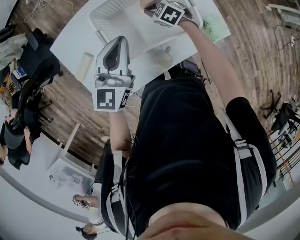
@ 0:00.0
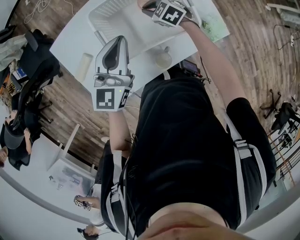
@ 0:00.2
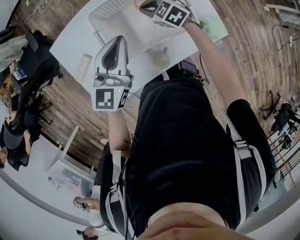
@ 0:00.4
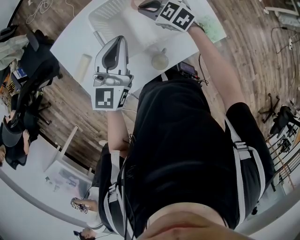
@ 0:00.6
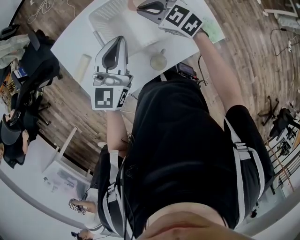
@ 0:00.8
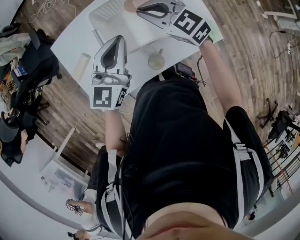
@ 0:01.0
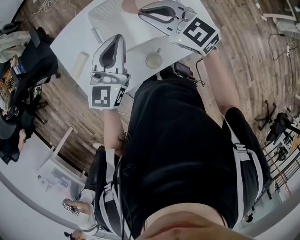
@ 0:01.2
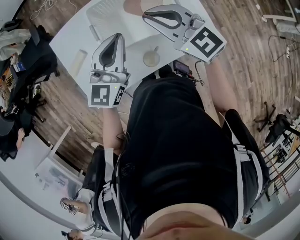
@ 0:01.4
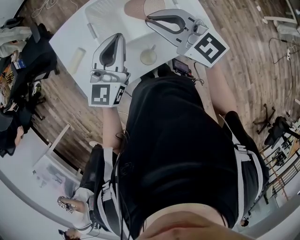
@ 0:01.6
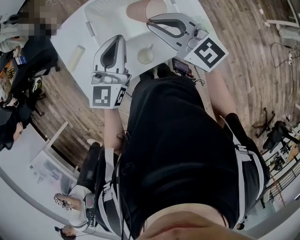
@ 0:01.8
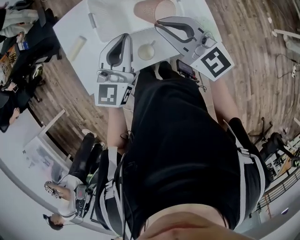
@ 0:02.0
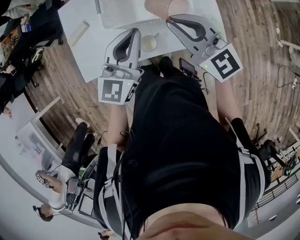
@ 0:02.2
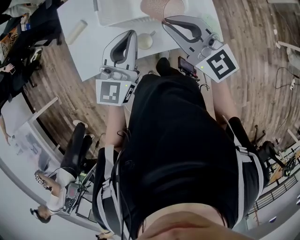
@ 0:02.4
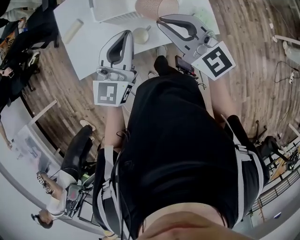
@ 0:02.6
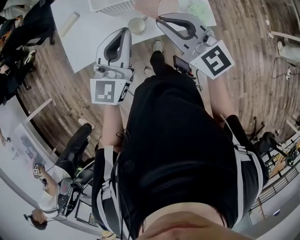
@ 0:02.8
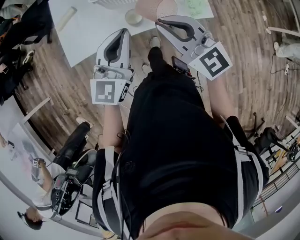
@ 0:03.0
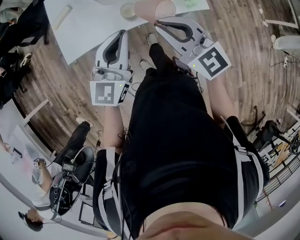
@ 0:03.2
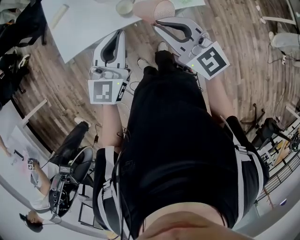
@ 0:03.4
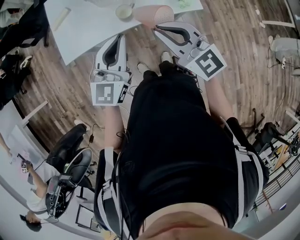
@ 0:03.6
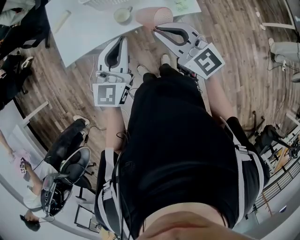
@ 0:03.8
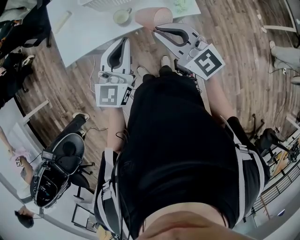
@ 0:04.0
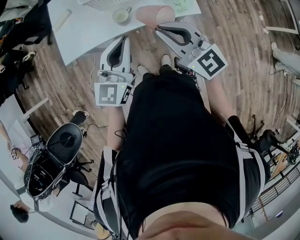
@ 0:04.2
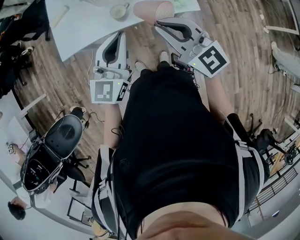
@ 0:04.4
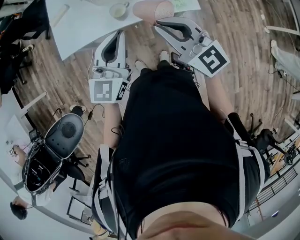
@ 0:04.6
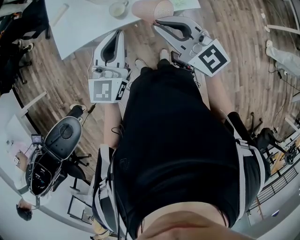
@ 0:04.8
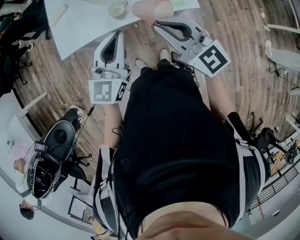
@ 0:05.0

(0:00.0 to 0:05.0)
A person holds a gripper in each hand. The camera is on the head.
0:00.0 - 0:01.6: The left gripper shifts about 10 cm backward. The right gripper travels upward and backward by approximately 35 cm, and angles its fingers upward, by approximately 50 degrees.
0:01.6 - 0:03.4: Both grippers move backward, roughly 30 cm.
0:03.4 - 0:05.0: The two grippers go approximately 5 cm to the right.

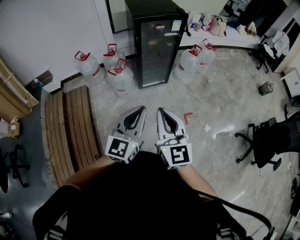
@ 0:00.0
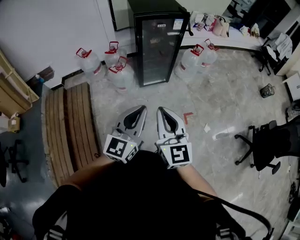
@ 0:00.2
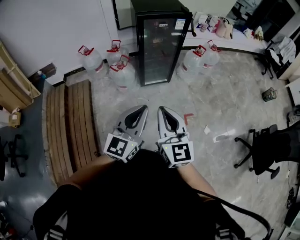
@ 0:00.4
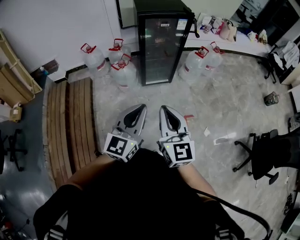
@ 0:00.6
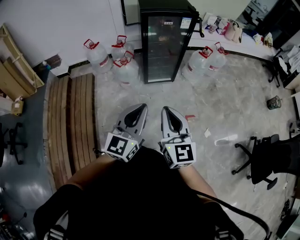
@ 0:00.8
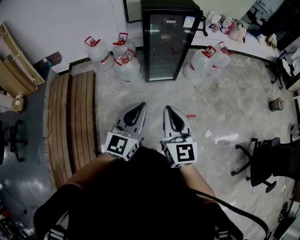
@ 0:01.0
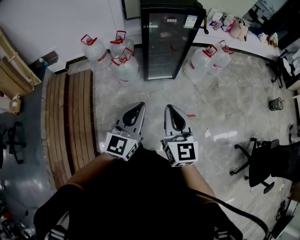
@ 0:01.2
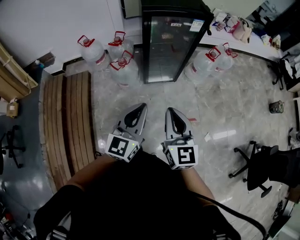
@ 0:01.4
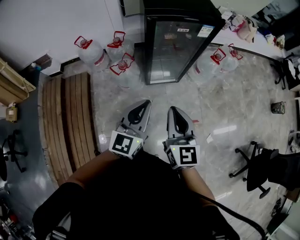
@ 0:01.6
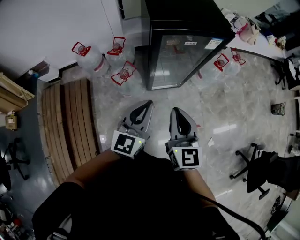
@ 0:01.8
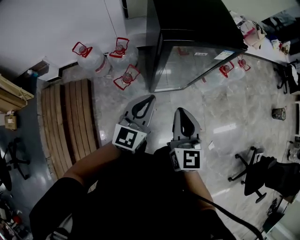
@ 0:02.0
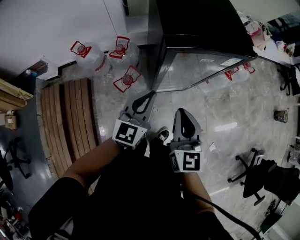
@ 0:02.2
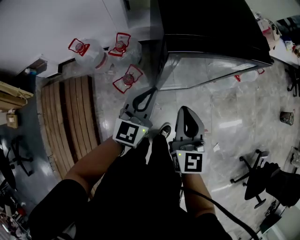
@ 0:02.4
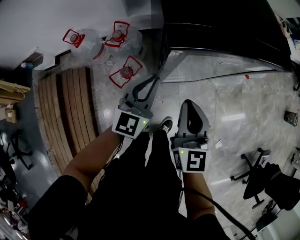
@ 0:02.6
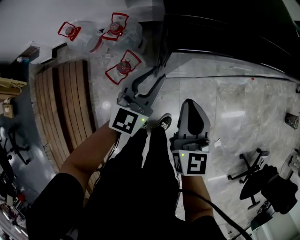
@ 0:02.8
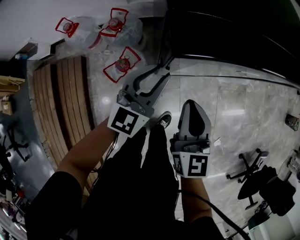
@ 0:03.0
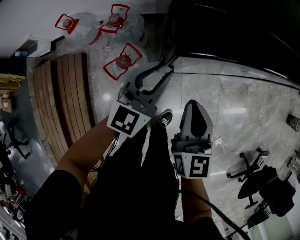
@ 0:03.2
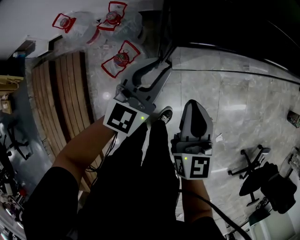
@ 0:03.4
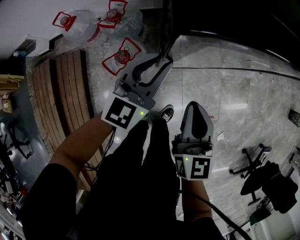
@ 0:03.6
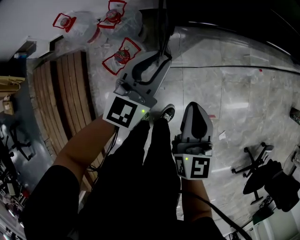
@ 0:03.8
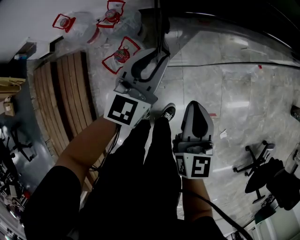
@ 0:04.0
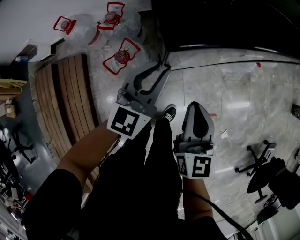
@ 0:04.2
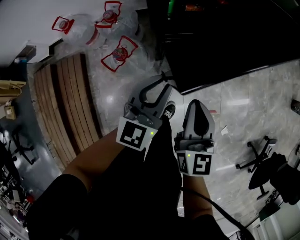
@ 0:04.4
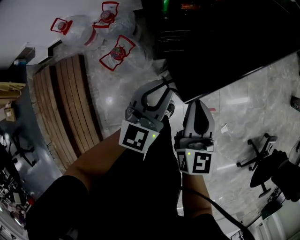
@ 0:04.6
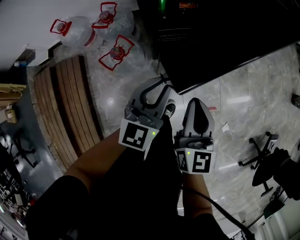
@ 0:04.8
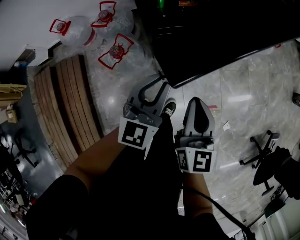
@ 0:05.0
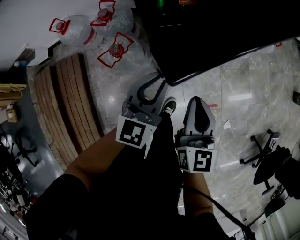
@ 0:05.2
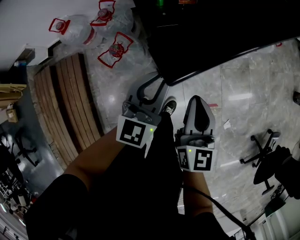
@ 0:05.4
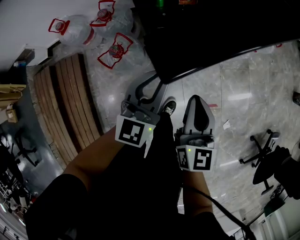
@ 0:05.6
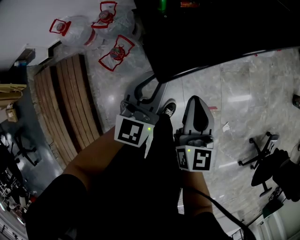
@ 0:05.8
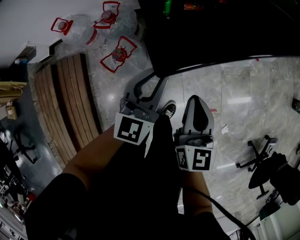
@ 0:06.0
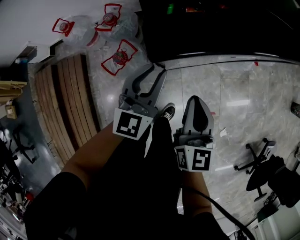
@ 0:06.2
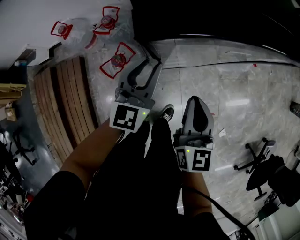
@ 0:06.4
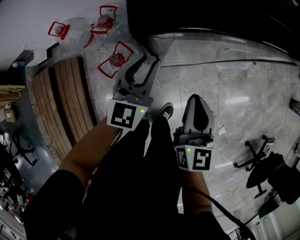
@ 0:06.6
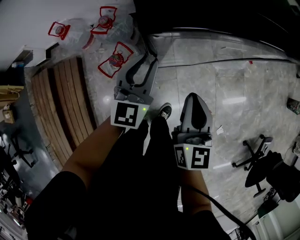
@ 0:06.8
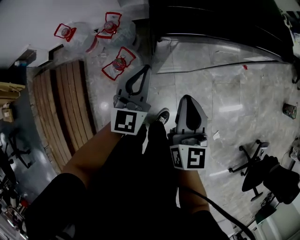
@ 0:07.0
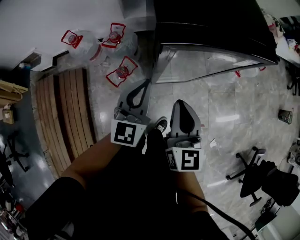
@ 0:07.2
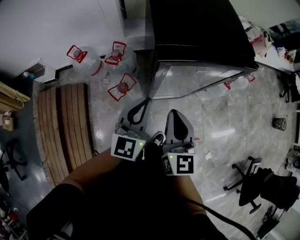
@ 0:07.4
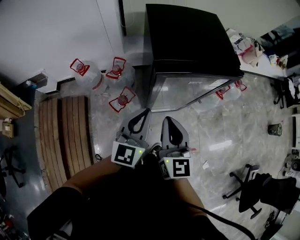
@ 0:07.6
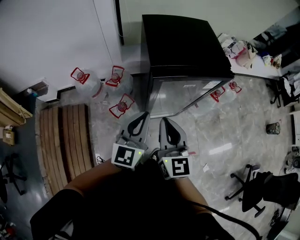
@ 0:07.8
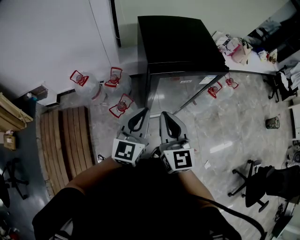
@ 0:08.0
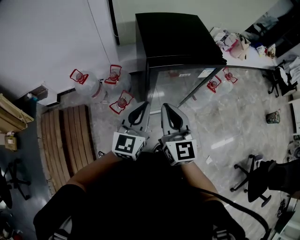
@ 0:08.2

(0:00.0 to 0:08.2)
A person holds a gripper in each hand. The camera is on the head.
0:00.0 - 0:01.6: The grippers both shift forward by about 25 cm.
0:01.6 - 0:03.2: Both grippers travel together forward and downward, some 40 cm. The left gripper opens its fingers.
0:03.2 - 0:05.0: The grippers both shift backward and to the right by some 10 cm.
0:05.0 - 0:06.6: The right gripper moves forward, roughly 10 cm; the left gripper heads forward and to the left, covering some 15 cm.
0:06.6 - 0:08.2: The right gripper moves upward, approximately 25 cm, and changes its angle by about 20 degrees. Meanwhile the left gripper shifts some 30 cm upward and backward, and closes up.

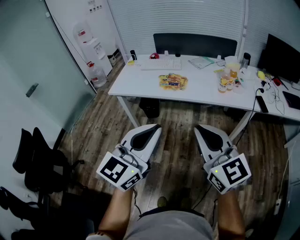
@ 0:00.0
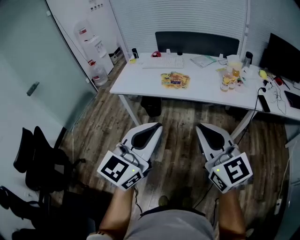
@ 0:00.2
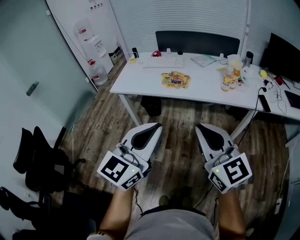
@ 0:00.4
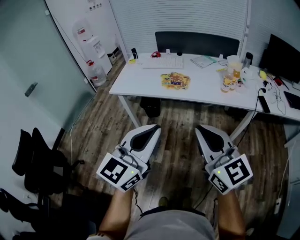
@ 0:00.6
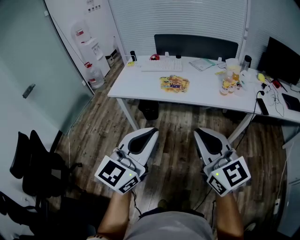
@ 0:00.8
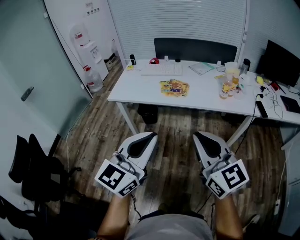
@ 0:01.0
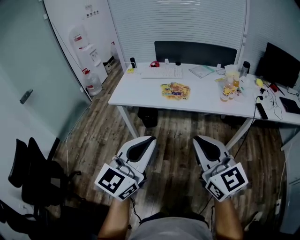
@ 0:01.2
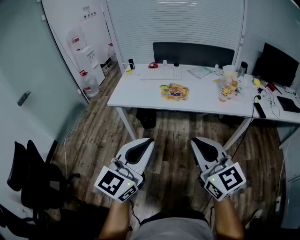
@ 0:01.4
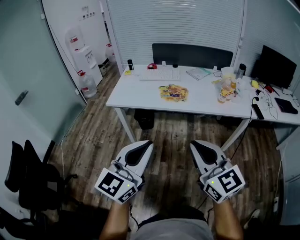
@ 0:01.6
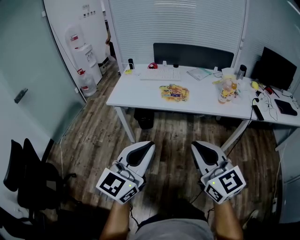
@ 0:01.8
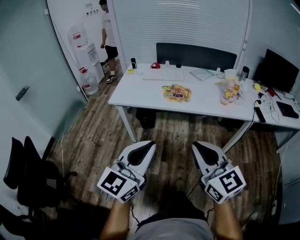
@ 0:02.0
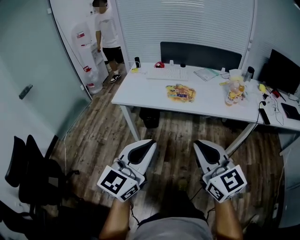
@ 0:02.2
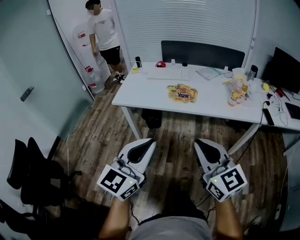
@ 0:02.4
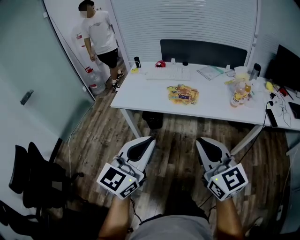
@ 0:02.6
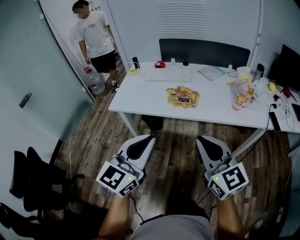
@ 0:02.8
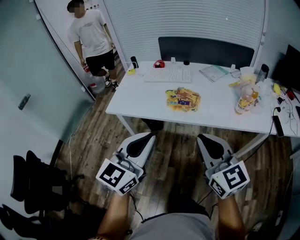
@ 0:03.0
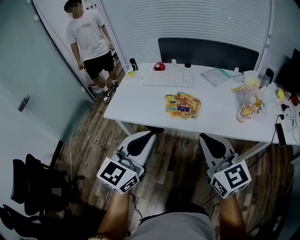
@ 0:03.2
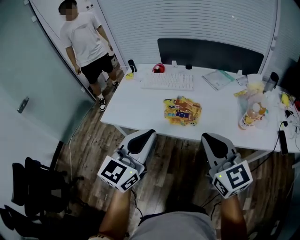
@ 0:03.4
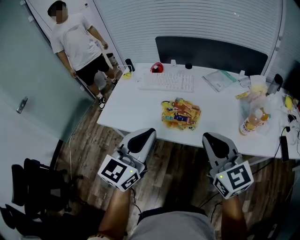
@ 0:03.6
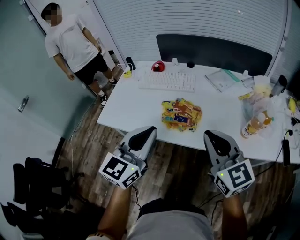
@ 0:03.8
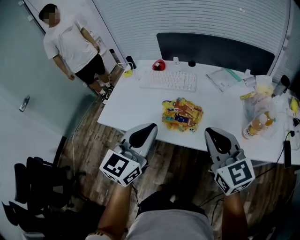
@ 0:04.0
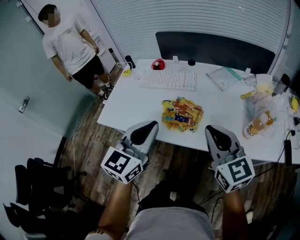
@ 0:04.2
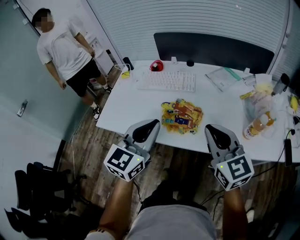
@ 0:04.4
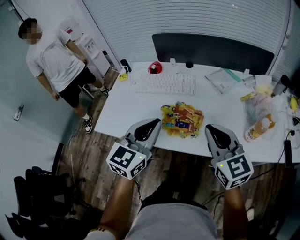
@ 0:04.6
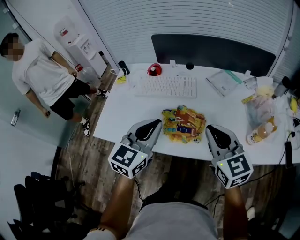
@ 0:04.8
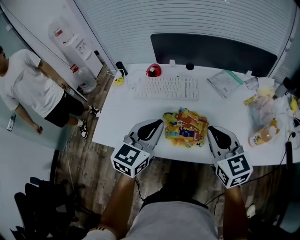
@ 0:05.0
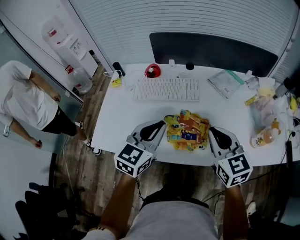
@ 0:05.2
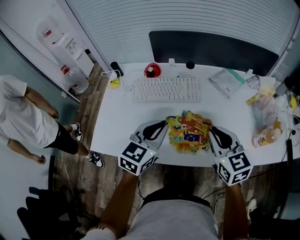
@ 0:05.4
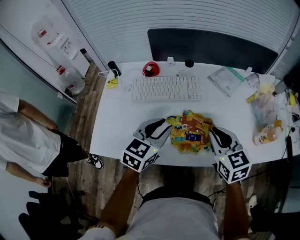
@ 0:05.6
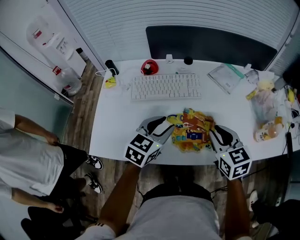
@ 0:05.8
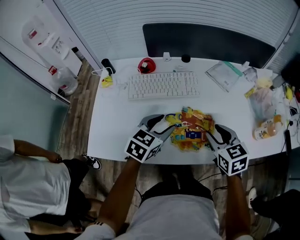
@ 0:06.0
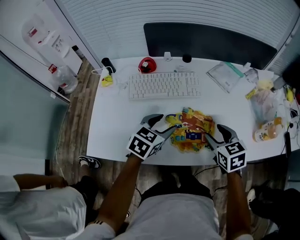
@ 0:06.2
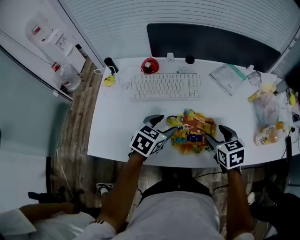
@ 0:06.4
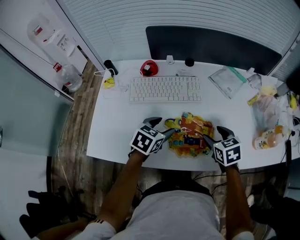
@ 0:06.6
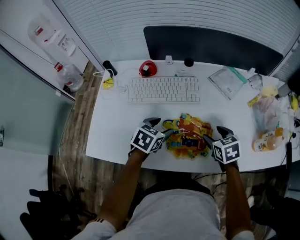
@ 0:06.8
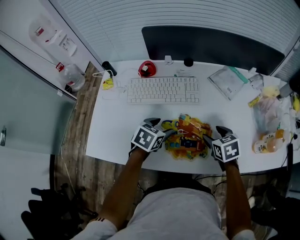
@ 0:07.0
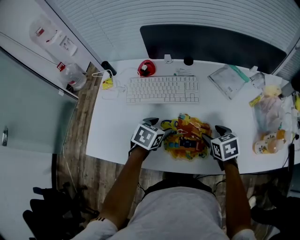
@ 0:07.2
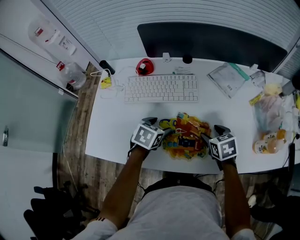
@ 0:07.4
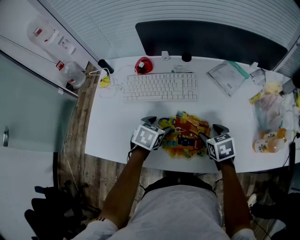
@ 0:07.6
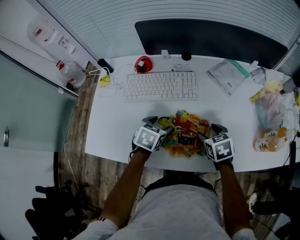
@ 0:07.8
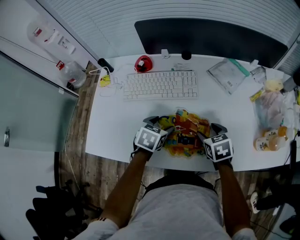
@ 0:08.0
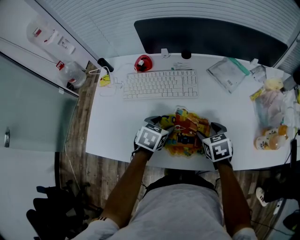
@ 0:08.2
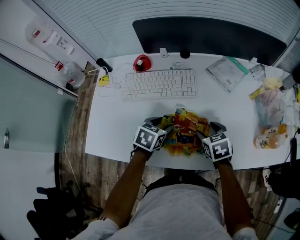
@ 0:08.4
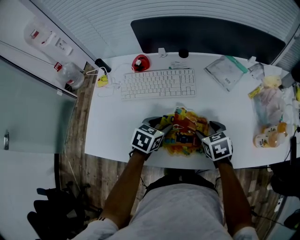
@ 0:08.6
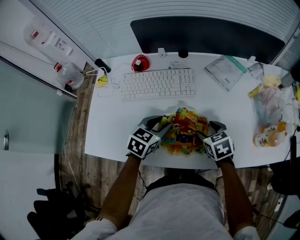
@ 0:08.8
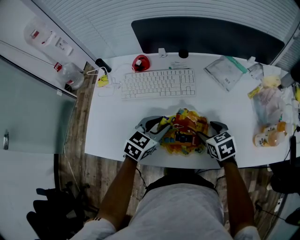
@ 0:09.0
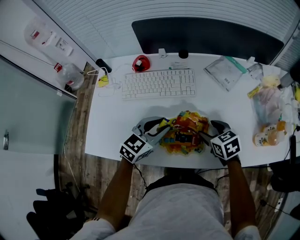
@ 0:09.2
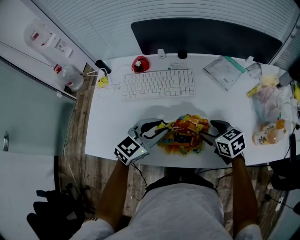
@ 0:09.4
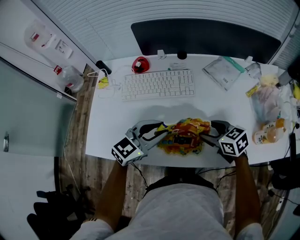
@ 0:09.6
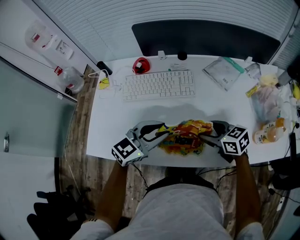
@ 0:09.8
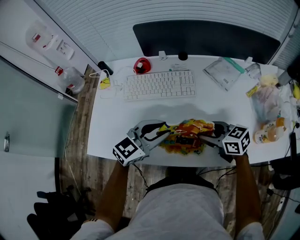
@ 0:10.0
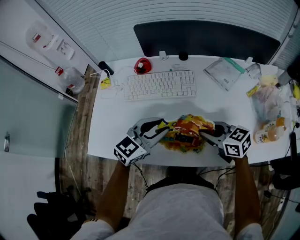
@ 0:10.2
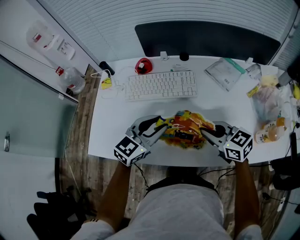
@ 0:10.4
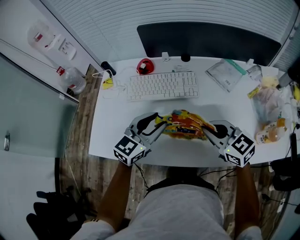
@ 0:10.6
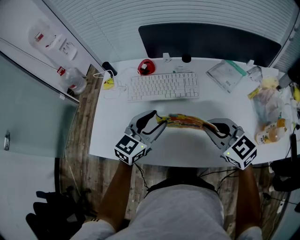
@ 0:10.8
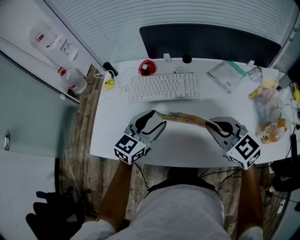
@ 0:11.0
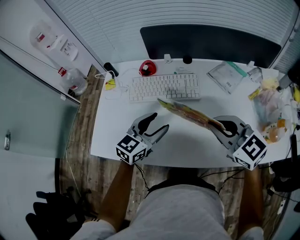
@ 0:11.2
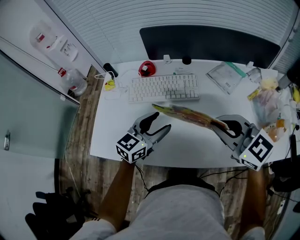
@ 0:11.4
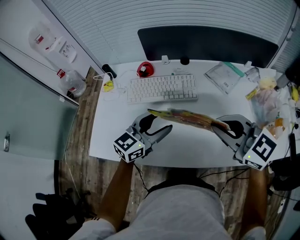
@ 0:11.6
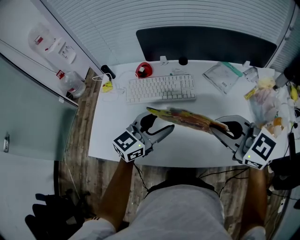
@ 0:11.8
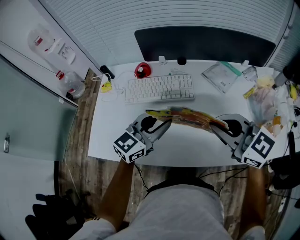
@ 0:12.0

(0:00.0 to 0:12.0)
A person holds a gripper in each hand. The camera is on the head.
0:00.0 - 0:01.6: The two grippers go about 10 cm to the left.
0:01.6 - 0:03.0: Both grippers move forward, some 20 cm.
0:03.0 - 0:04.4: The grippers both shift forward by approximately 25 cm.
0:04.4 - 0:06.0: The left gripper travels forward and downward by some 25 cm, swivels roughly 30 degrees, and opens up. Meanwhile the right gripper shifts approximately 20 cm downward, forward and to the left, turns by roughly 30 degrees, and opens up.
0:06.0 - 0:07.6: The left gripper is displaced downward by roughly 10 cm, and swivels about 30 degrees. The right gripper shifts roughly 10 cm downward and forward, and opens up.
0:07.6 - 0:09.0: The left gripper moves upward, about 5 cm, changes its angle by about 30 degrees, and closes its fingers.
0:09.0 - 0:10.4: Both grippers move upward, approximately 10 cm. The right gripper rotates some 30 degrees, and closes its fingers.
0:10.4 - 0:12.0: The right gripper shifts roughly 15 cm upward, and swivels roughly 20 degrees. The left gripper shifts by some 5 cm, and opens and closes again.
